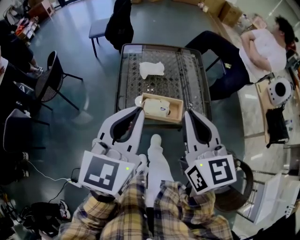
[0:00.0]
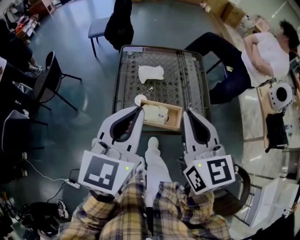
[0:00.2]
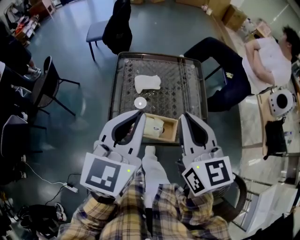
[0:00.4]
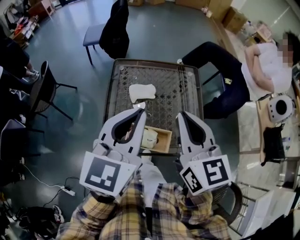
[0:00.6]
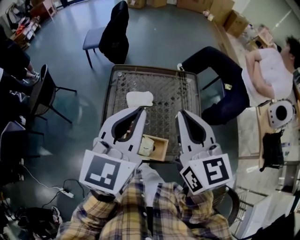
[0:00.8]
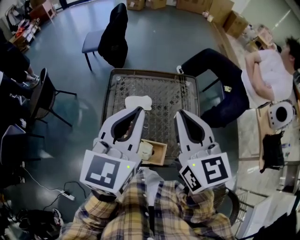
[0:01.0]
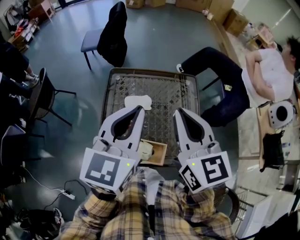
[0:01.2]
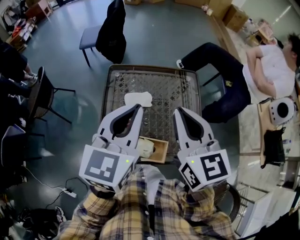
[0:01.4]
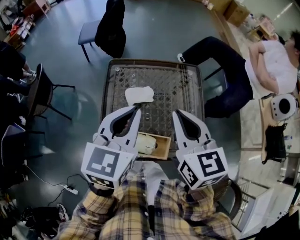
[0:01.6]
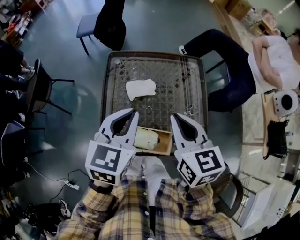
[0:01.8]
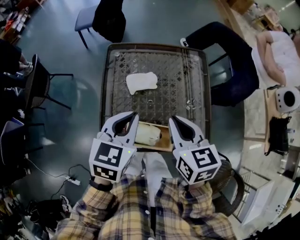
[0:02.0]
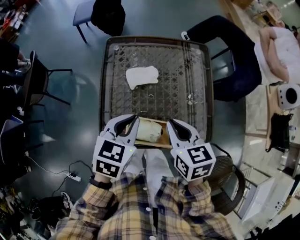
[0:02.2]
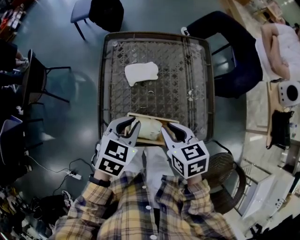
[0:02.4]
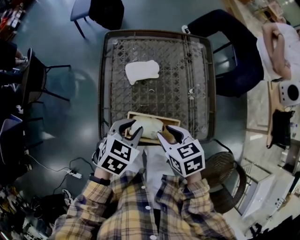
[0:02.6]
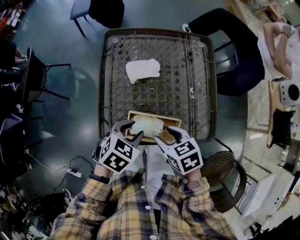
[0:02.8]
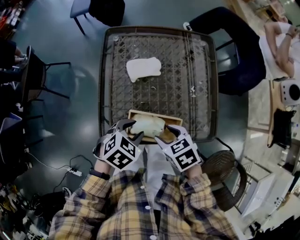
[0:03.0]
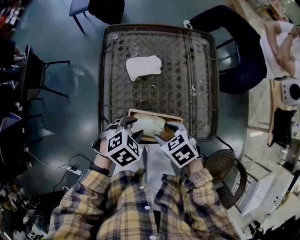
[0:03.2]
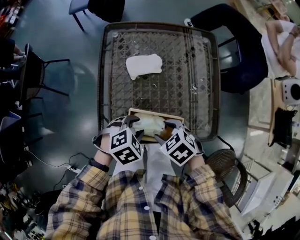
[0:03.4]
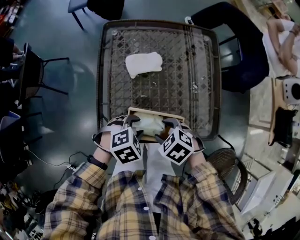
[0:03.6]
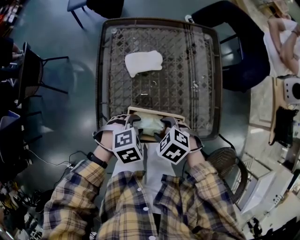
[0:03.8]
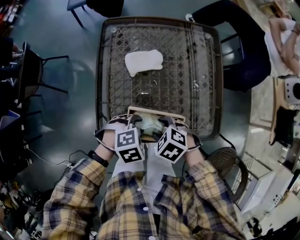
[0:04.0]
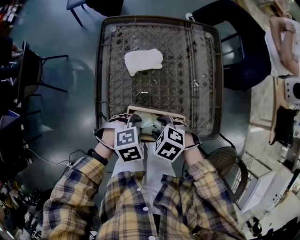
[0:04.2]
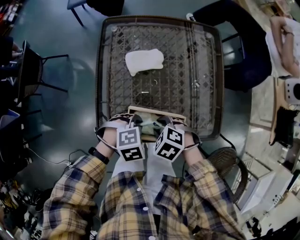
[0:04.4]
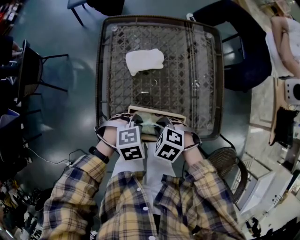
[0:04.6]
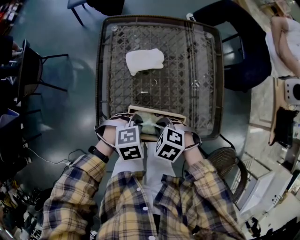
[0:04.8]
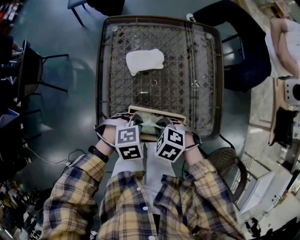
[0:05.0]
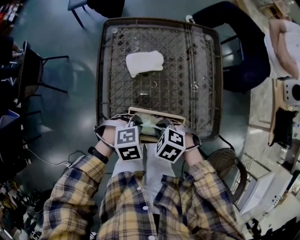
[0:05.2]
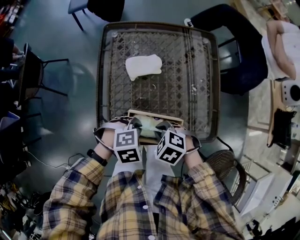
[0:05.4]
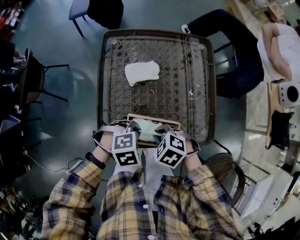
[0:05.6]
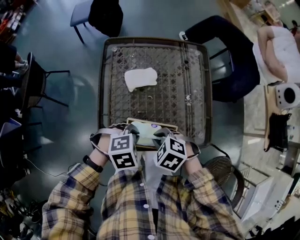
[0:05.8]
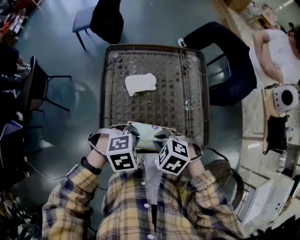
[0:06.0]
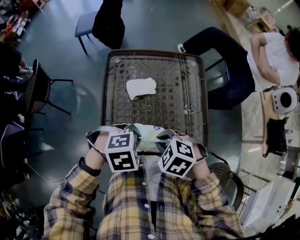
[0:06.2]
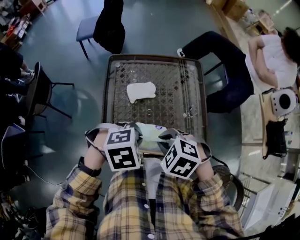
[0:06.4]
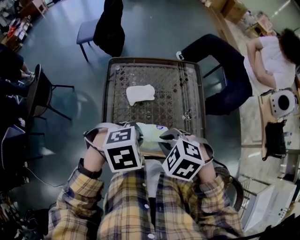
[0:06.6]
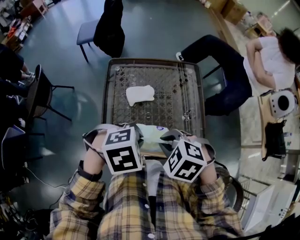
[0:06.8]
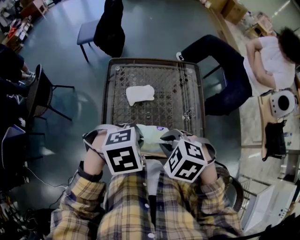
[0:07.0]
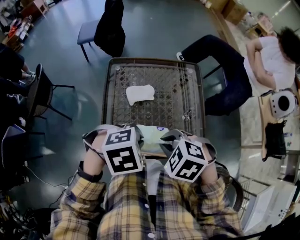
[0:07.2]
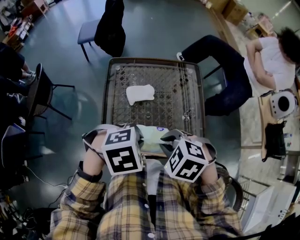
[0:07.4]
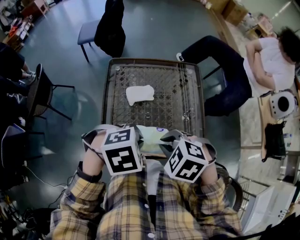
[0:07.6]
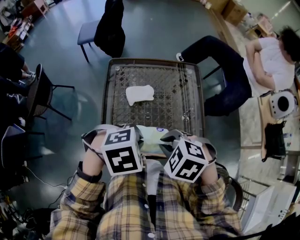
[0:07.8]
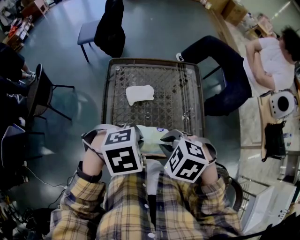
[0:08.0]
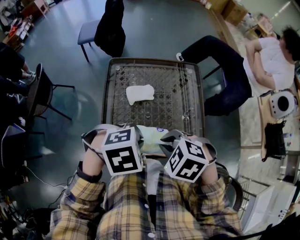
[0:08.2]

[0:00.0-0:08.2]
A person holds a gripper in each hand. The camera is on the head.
0.0 to 1.6 s: The two grippers go some 20 cm forward.
1.6 to 3.2 s: Both grippers travel together downward, about 30 cm. The left gripper tilts its fingers roughly 40 degrees downward, and opens its fingers. Meanwhile the right gripper tilts its fingers about 40 degrees downward, and opens.
3.2 to 5.0 s: The right gripper moves downward, some 5 cm, turns by about 30 degrees, and closes. Meanwhile the left gripper shifts by about 5 cm, rotates roughly 20 degrees, and closes.
5.0 to 6.6 s: Both grippers travel together upward, approximately 20 cm.
6.6 to 8.2 s: There are only small adjustments of the grippers.

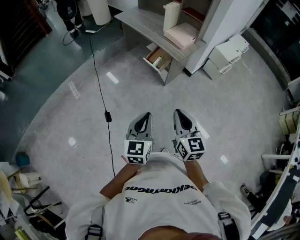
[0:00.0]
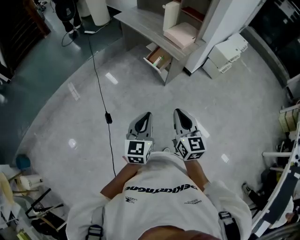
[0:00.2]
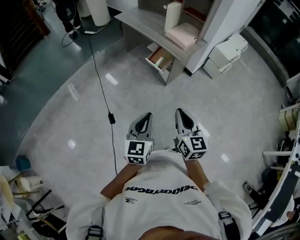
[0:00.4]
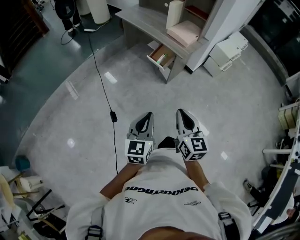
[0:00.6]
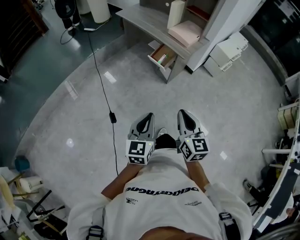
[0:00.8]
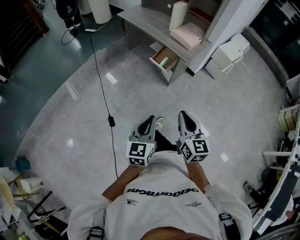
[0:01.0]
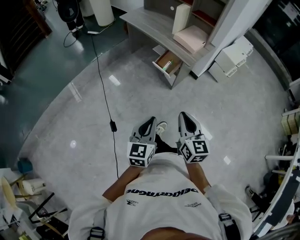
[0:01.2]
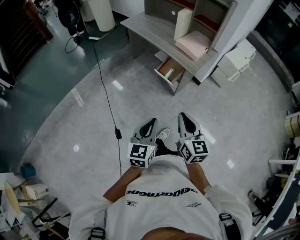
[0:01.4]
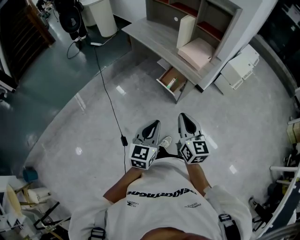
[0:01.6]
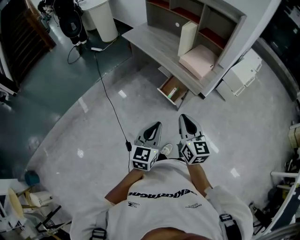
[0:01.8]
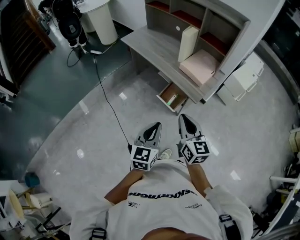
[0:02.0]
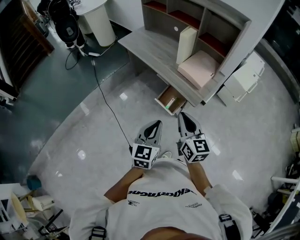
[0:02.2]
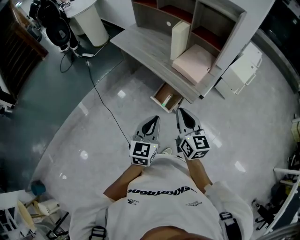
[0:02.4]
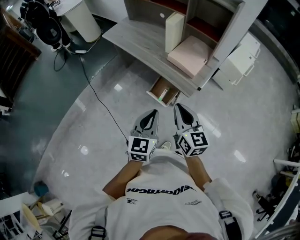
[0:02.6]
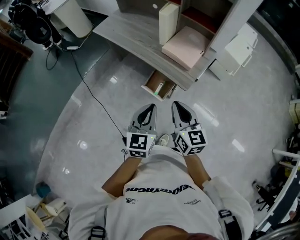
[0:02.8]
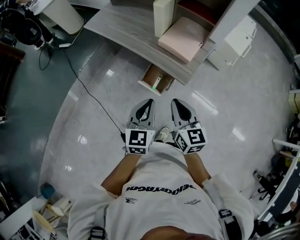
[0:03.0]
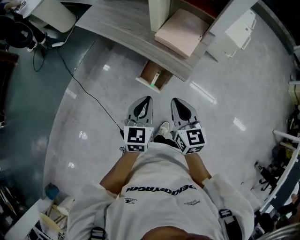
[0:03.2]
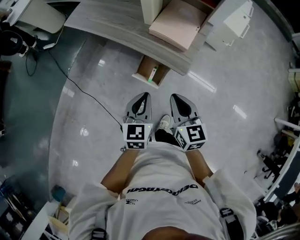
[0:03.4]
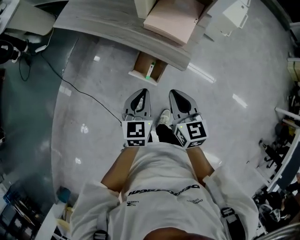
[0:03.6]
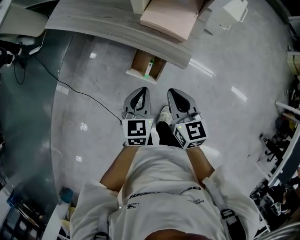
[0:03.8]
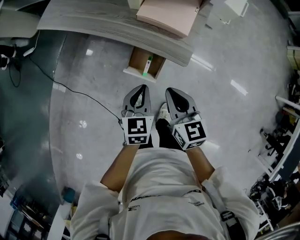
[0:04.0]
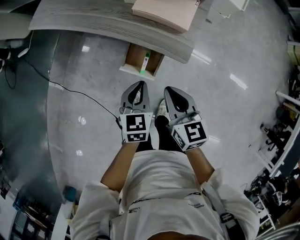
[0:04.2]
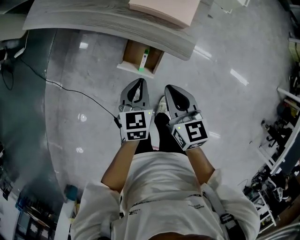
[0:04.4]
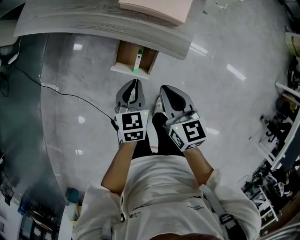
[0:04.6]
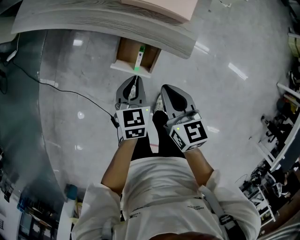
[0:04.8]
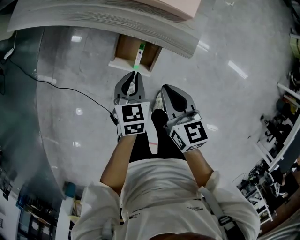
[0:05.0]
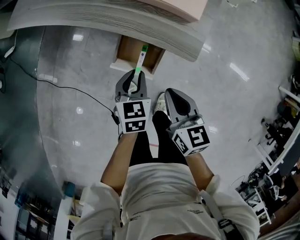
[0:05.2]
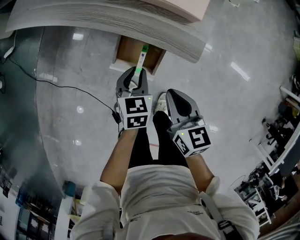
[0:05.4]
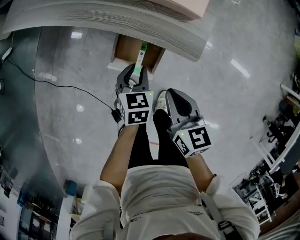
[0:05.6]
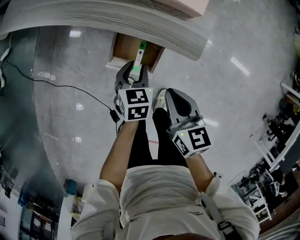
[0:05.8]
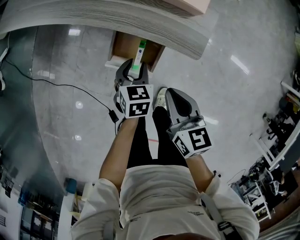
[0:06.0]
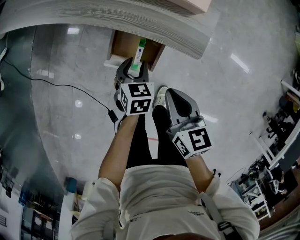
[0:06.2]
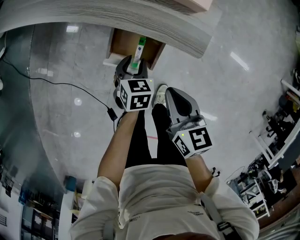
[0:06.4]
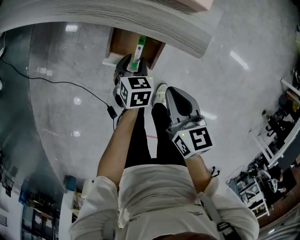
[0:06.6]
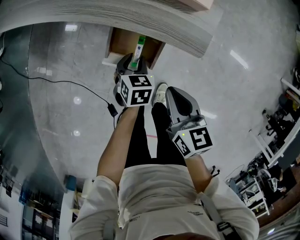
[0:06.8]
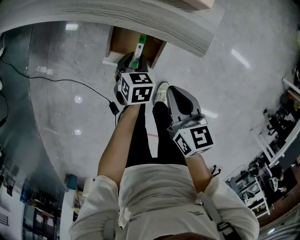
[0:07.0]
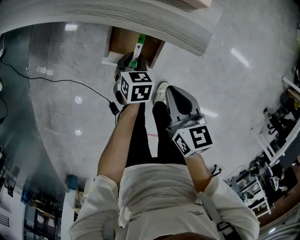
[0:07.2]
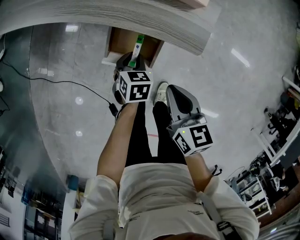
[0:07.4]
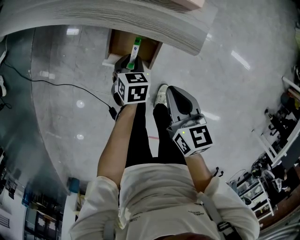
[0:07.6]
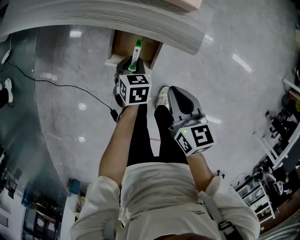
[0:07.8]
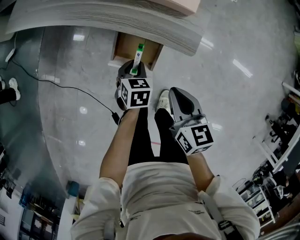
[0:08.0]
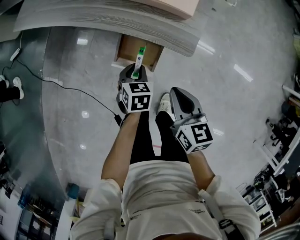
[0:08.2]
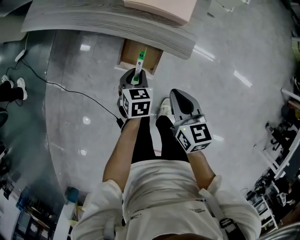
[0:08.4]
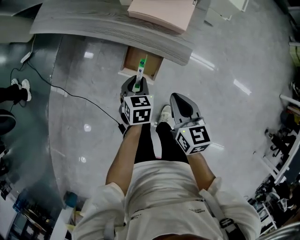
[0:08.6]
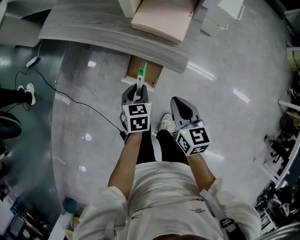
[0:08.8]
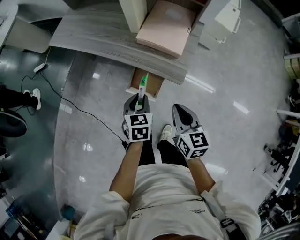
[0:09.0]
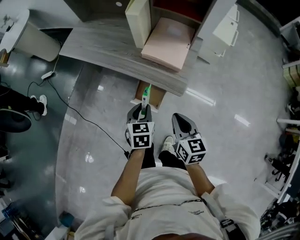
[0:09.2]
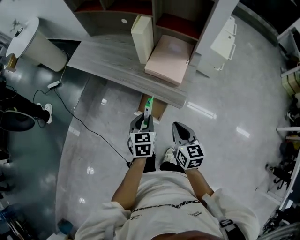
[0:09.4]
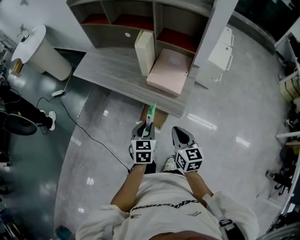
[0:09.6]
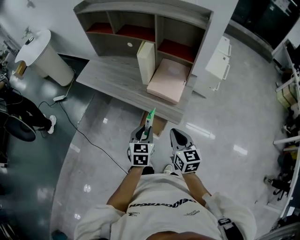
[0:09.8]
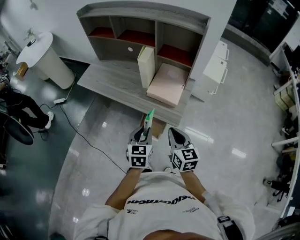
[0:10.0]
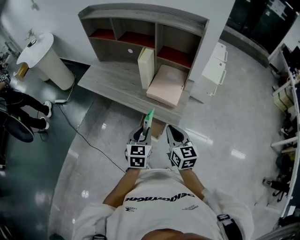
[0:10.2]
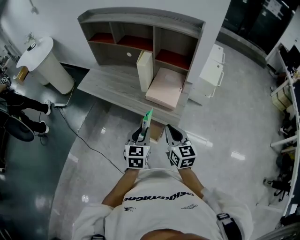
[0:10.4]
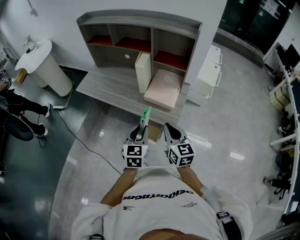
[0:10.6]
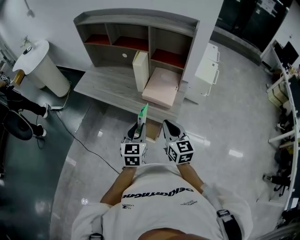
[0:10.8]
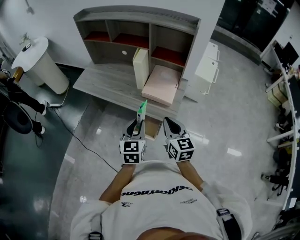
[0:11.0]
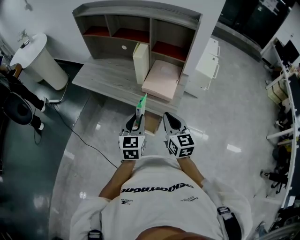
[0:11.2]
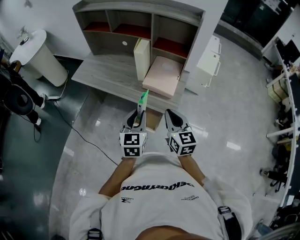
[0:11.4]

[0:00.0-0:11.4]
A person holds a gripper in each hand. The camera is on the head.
0.0 to 1.4 s: Both grippers move forward and to the left, approximately 15 cm.
1.4 to 2.8 s: The grippers both shift forward by approximately 30 cm.
2.8 to 4.2 s: The grippers both shift downward and forward by approximately 25 cm. The left gripper rotates some 20 degrees.
4.2 to 5.6 s: The grippers both shift downward by approximately 15 cm. The left gripper opens.
5.6 to 7.2 s: The left gripper heads downward, covering about 10 cm.
7.2 to 8.6 s: The grippers both shift upward by about 15 cm.
8.6 to 10.0 s: Both grippers travel together upward, roughly 25 cm. The left gripper rotates approximately 20 degrees.
10.0 to 11.4 s: The left gripper is displaced upward by approximately 5 cm.

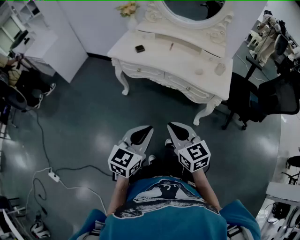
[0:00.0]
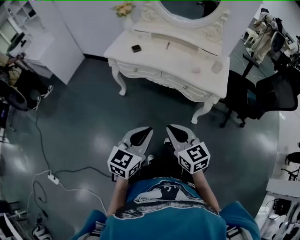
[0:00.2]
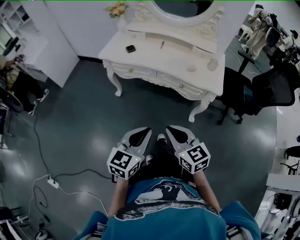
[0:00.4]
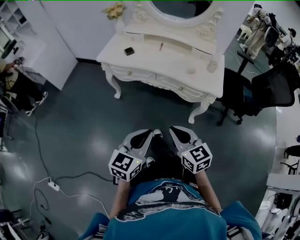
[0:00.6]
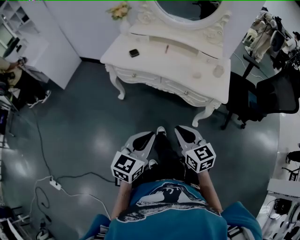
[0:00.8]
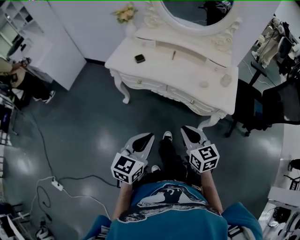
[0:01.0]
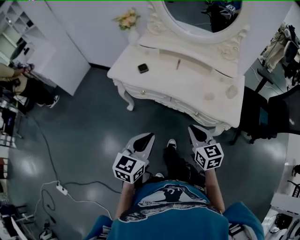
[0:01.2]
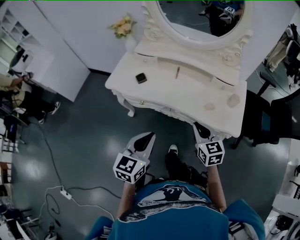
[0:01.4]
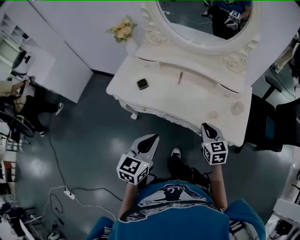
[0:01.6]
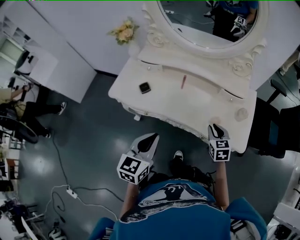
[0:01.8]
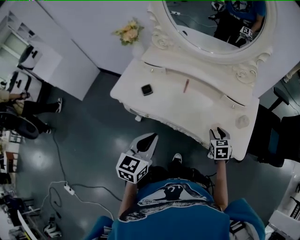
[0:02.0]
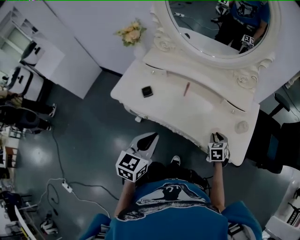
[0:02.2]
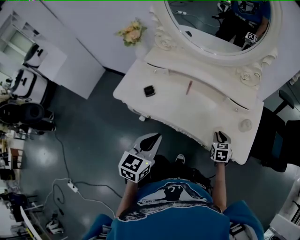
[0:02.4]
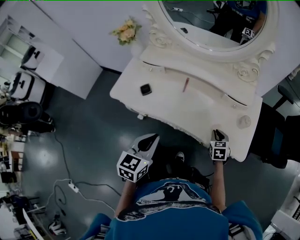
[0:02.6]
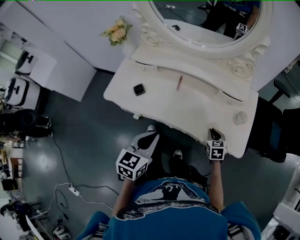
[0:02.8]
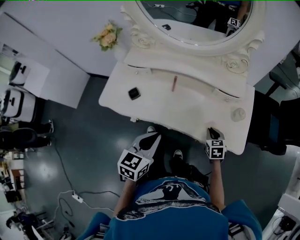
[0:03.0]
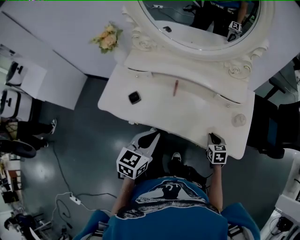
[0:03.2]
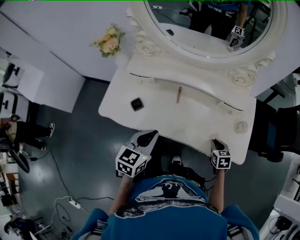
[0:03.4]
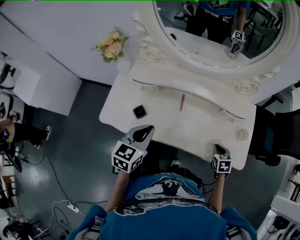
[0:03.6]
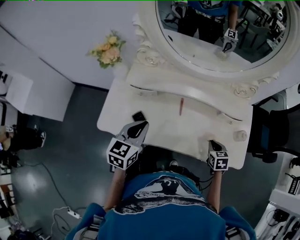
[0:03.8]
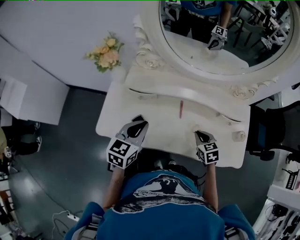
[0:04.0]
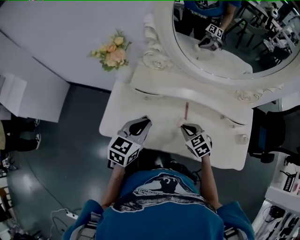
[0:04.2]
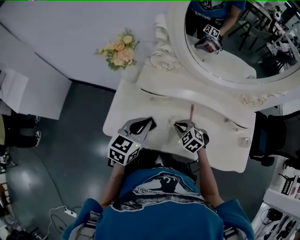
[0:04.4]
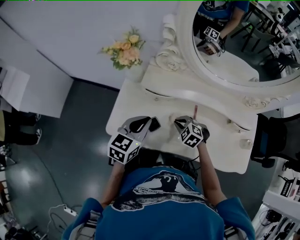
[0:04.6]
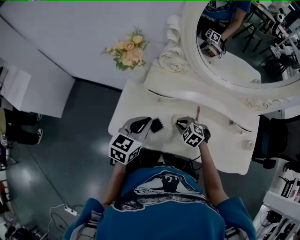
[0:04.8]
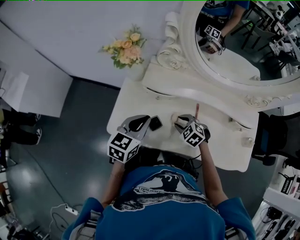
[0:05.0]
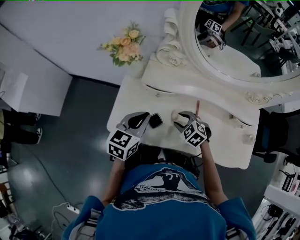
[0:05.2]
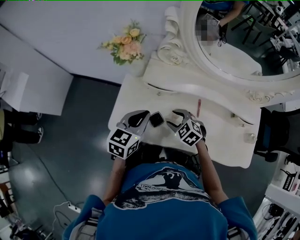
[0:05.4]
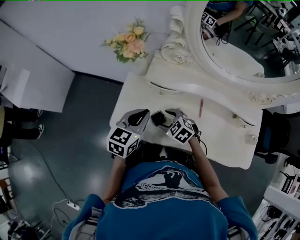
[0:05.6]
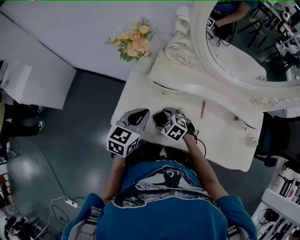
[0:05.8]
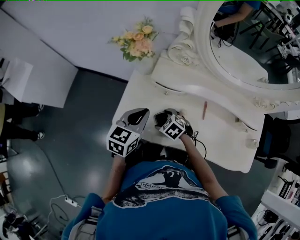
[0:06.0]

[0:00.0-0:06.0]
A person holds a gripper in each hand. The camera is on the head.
0.0 to 1.6 s: The grippers both shift forward by roughly 30 cm. The right gripper rotates some 20 degrees.
1.6 to 3.0 s: The right gripper travels downward, to the right and forward by approximately 15 cm, while the left gripper goes roughly 10 cm forward.
3.0 to 4.4 s: The right gripper is displaced to the left by approximately 35 cm, and rolls counterclockwise, seen from behind, by roughly 40 degrees. The left gripper heads to the left and forward, covering some 30 cm.
4.4 to 6.0 s: The right gripper is displaced to the left by about 15 cm, and opens, while the left gripper shifts approximately 5 cm to the left.
